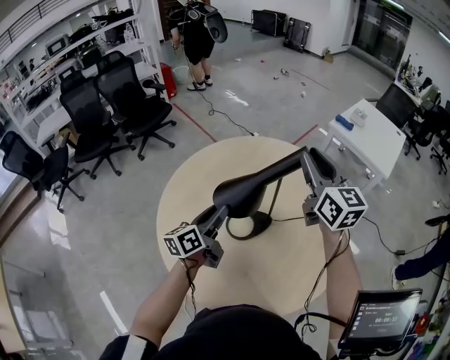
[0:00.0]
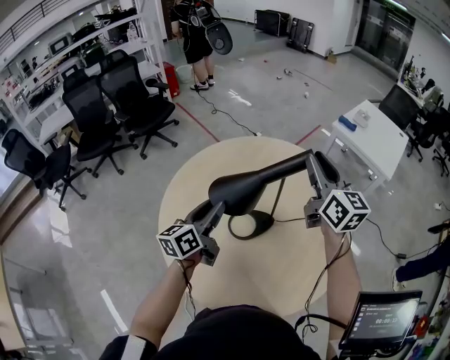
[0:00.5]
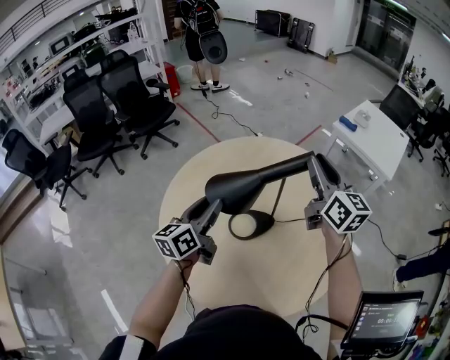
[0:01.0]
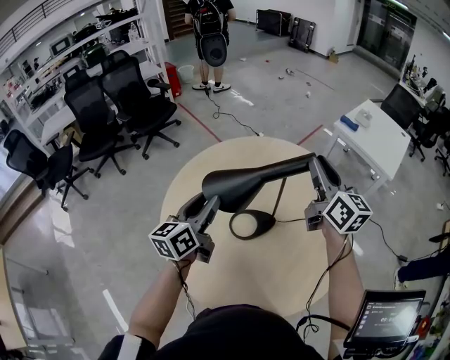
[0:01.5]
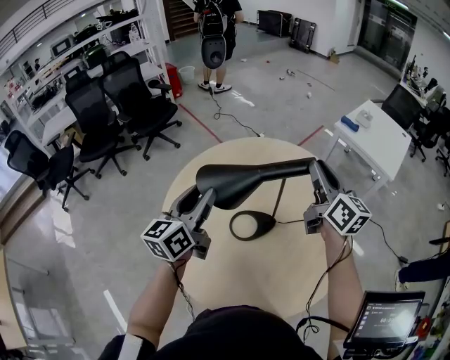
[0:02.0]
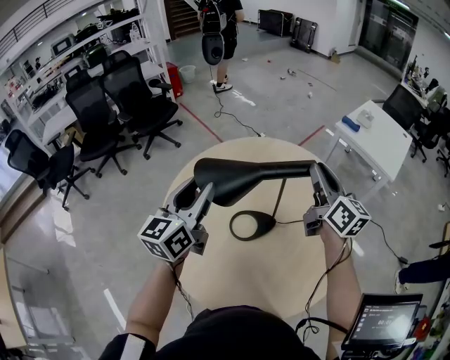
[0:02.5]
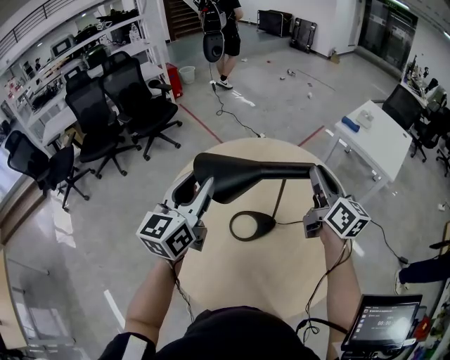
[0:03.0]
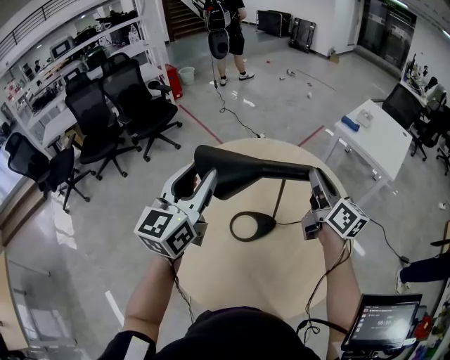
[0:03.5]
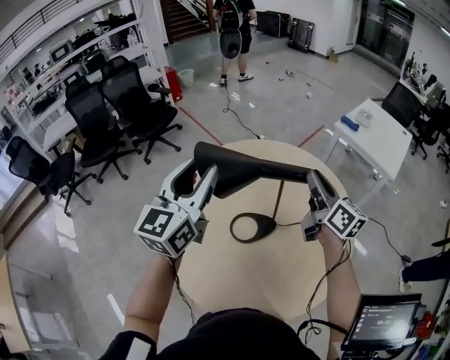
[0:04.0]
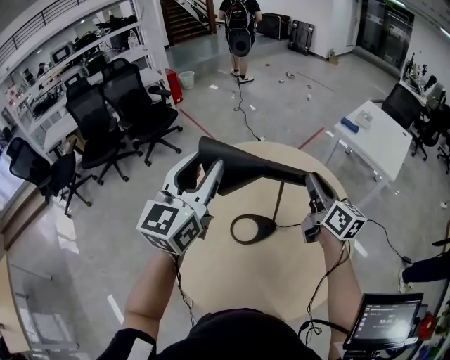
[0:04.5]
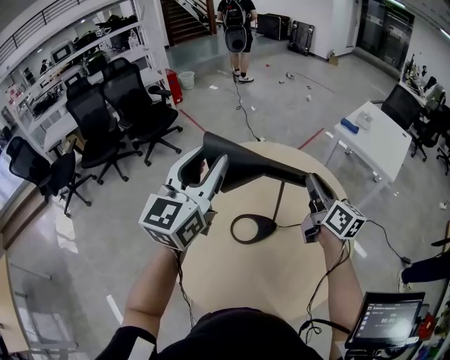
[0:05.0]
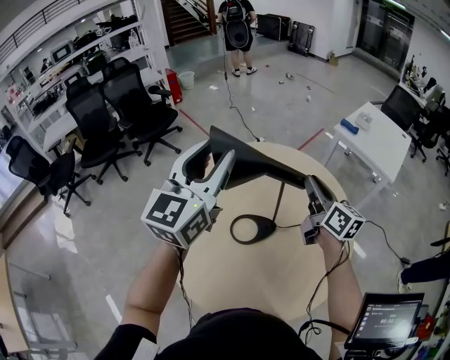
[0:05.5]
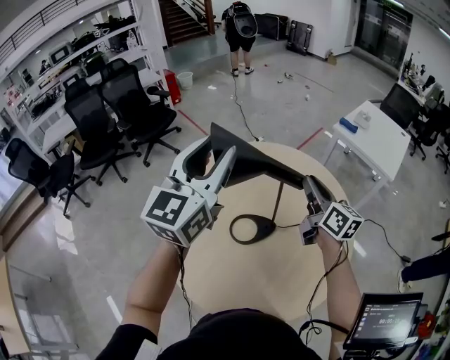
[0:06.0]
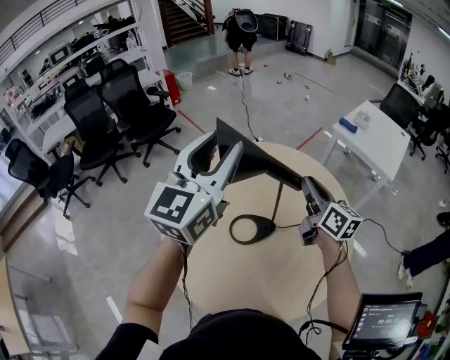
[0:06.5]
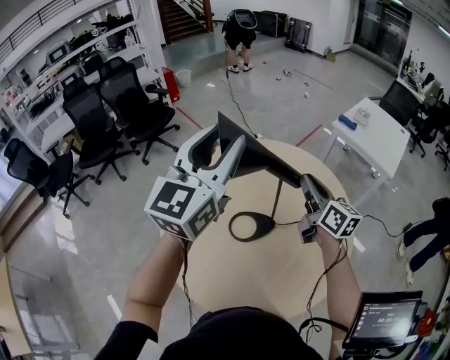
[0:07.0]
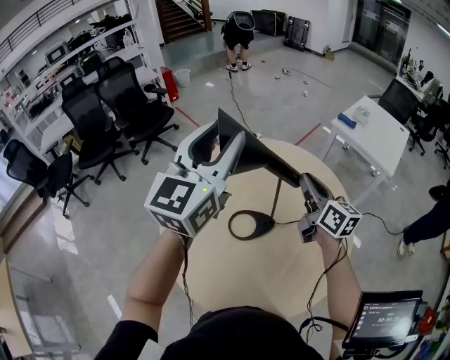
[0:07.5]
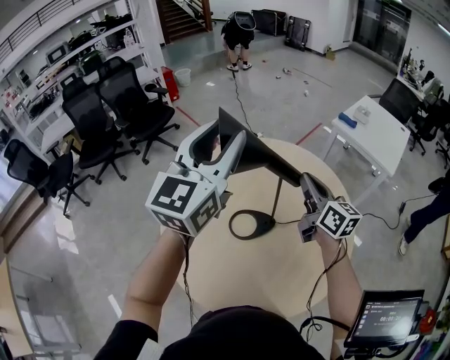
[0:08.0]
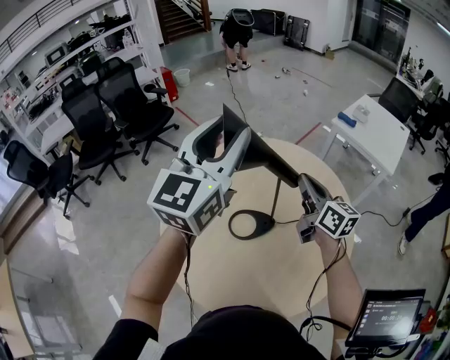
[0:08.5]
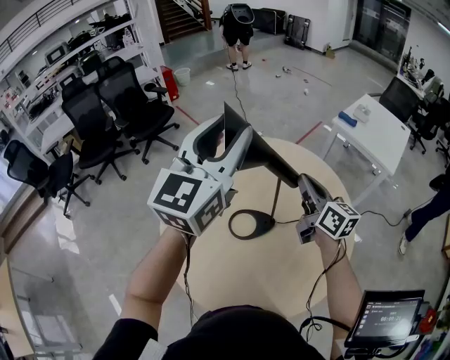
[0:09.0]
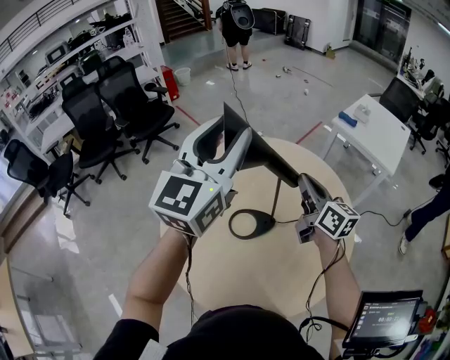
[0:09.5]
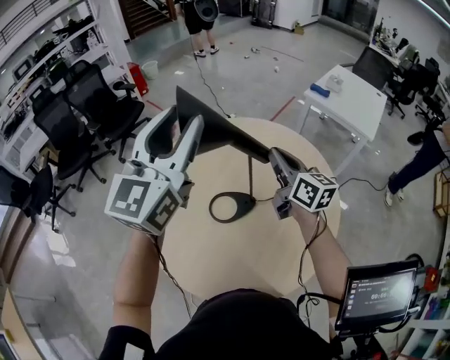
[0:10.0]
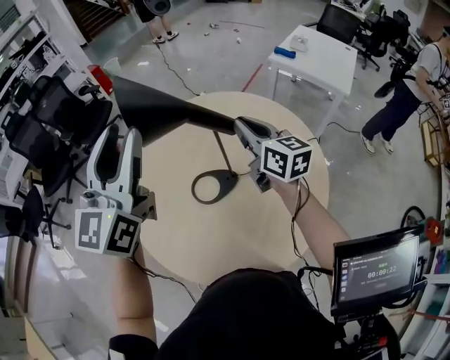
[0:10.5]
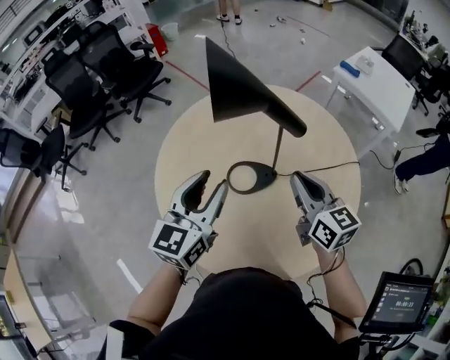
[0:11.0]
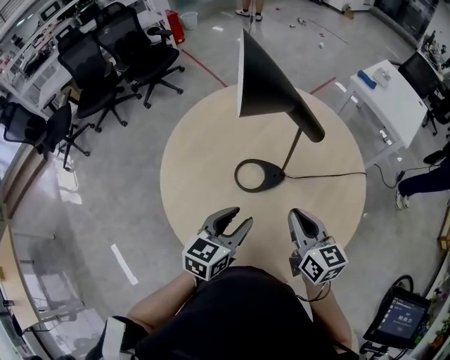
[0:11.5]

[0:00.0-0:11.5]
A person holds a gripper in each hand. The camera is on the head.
0:00.0 to 0:02.0: The left gripper travels upward by some 10 cm, and turns by some 20 degrees.
0:02.0 to 0:04.0: The left gripper travels upward by roughly 10 cm, and swivels roughly 20 degrees.
0:04.0 to 0:06.0: The left gripper is displaced upward by roughly 5 cm.
0:06.0 to 0:09.5: The grippers move only a little.
0:09.5 to 0:11.5: The left gripper is displaced downward and backward by approximately 40 cm, and tips its fingers downward by roughly 40 degrees. The right gripper heads backward and downward, covering roughly 20 cm, and swivels roughly 20 degrees.

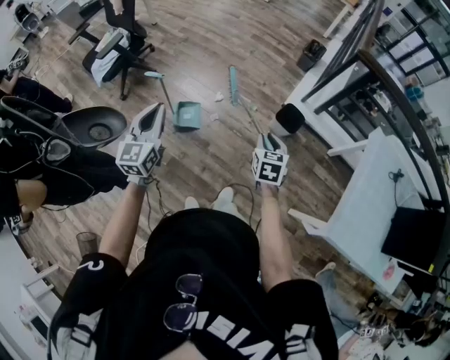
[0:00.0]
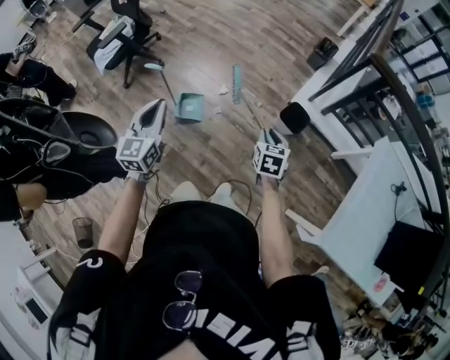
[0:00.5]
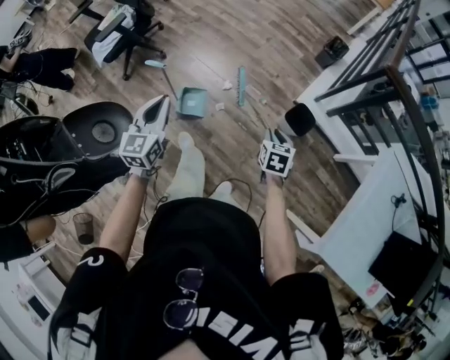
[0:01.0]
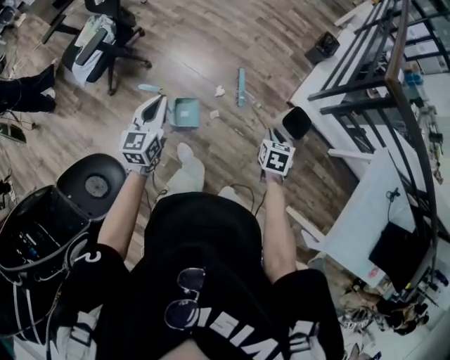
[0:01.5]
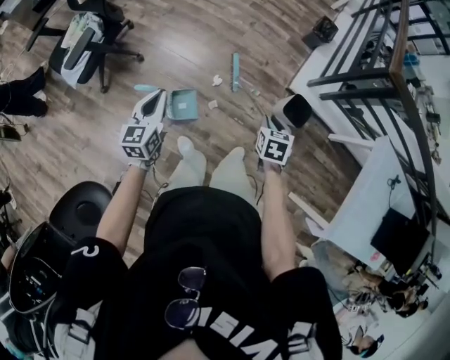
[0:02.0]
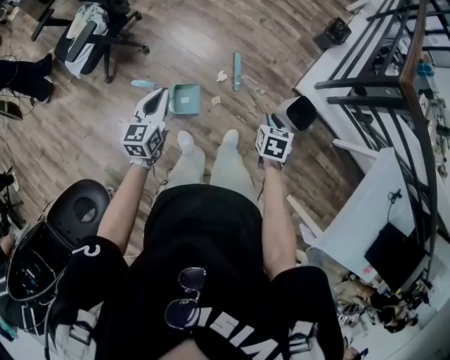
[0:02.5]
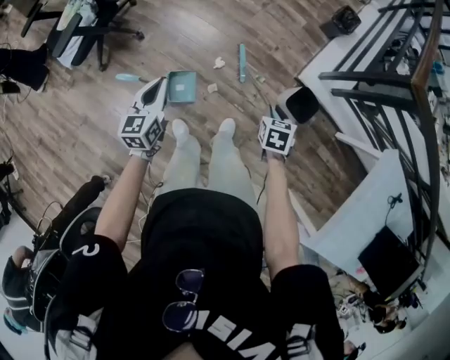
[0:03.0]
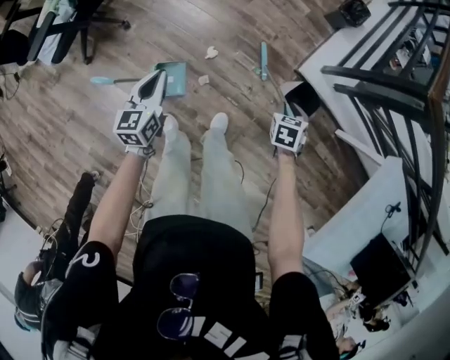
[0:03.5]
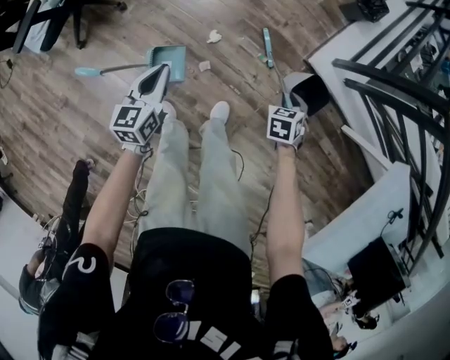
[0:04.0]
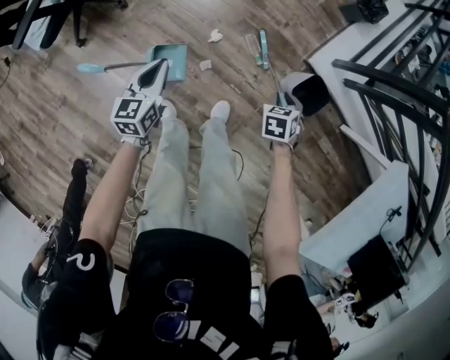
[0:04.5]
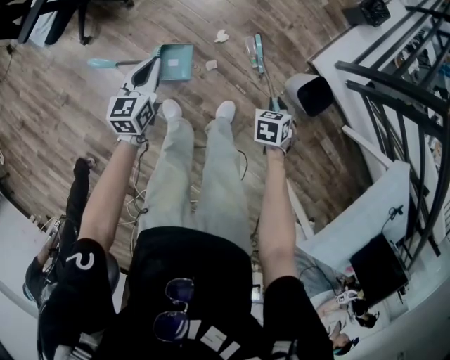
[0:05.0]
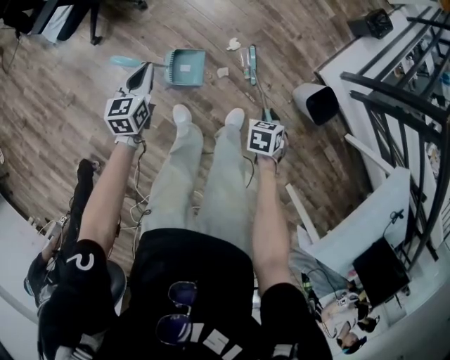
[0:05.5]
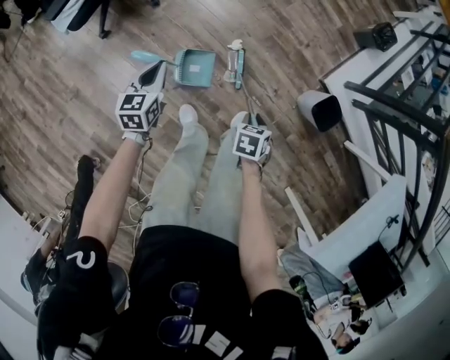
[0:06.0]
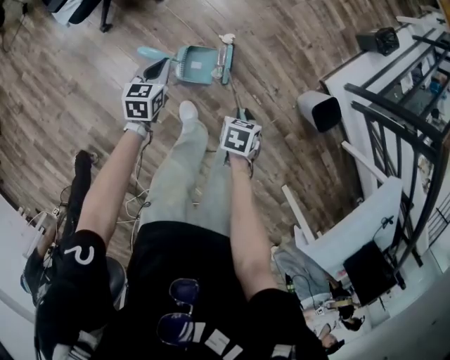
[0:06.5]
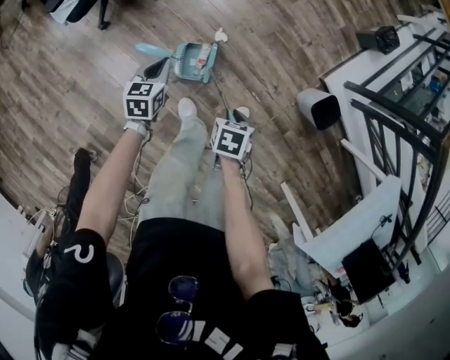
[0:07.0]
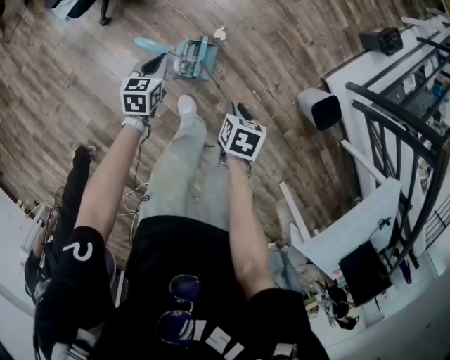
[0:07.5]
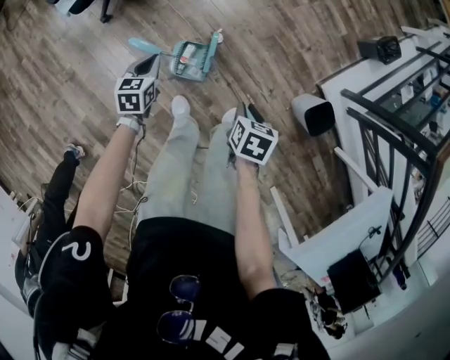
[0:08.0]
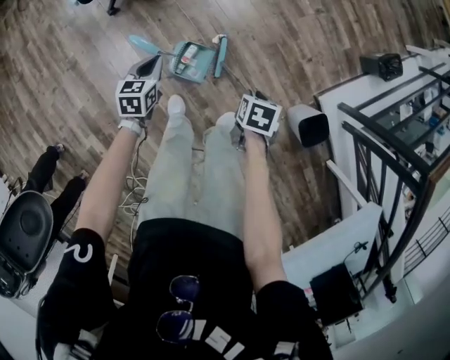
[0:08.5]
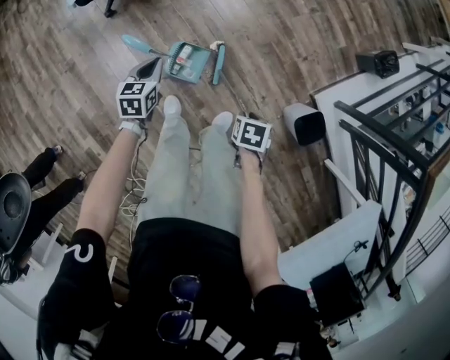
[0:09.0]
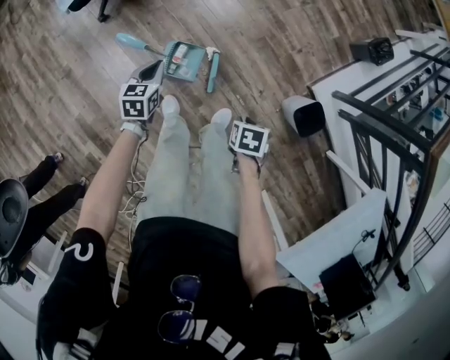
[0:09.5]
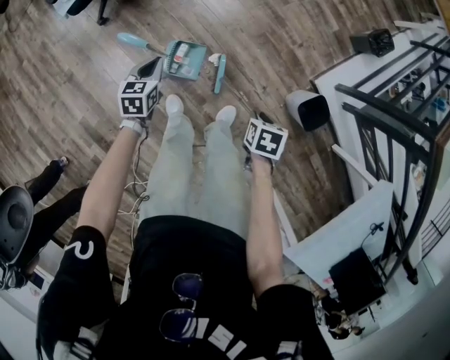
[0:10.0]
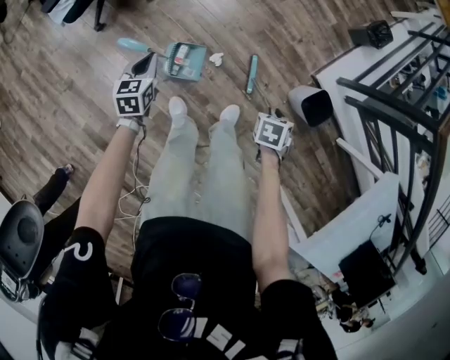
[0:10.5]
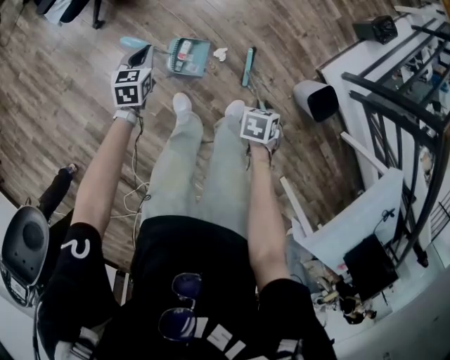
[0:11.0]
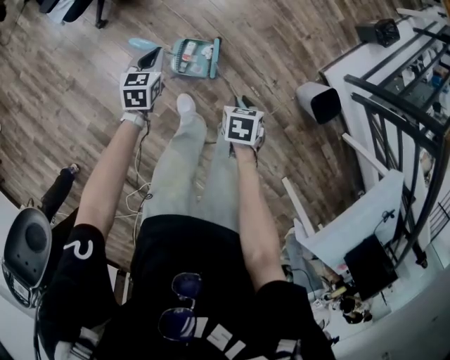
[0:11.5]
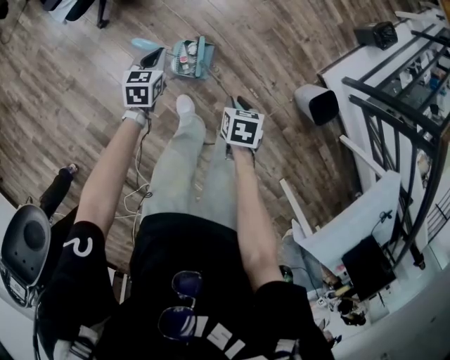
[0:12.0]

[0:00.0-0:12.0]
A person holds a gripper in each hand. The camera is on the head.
0:00.0 to 0:02.0: The left gripper heads forward, to the left and downward, covering about 40 cm. The right gripper moves forward and to the left, approximately 30 cm.
0:02.0 to 0:04.0: The right gripper travels downward, forward and to the right by about 35 cm, and changes its angle by about 20 degrees. Meanwhile the left gripper travels downward, to the right and forward by some 30 cm.
0:04.0 to 0:06.0: The left gripper travels to the left by some 20 cm. The right gripper shifts about 30 cm to the left and backward.
0:06.0 to 0:08.0: The right gripper travels upward by about 5 cm. Meanwhile the left gripper travels downward by roughly 5 cm.
0:08.0 to 0:10.0: The left gripper changes place by roughly 10 cm. Meanwhile the right gripper changes place by approximately 10 cm.
0:10.0 to 0:12.0: The left gripper shifts by about 10 cm. Meanwhile the right gripper moves some 15 cm.

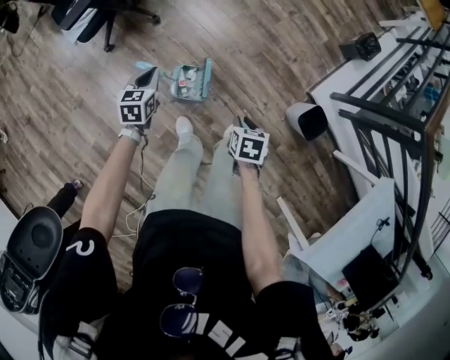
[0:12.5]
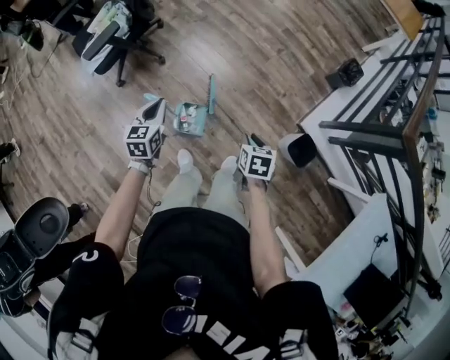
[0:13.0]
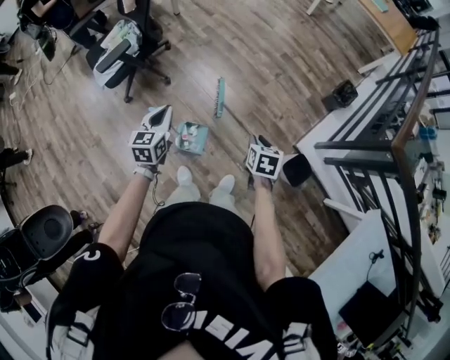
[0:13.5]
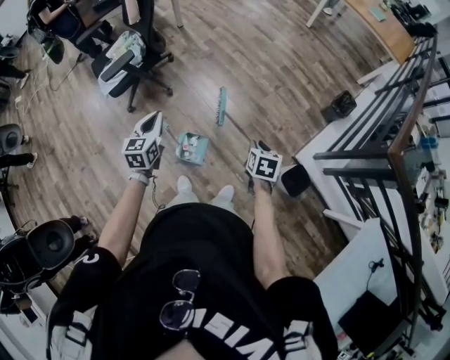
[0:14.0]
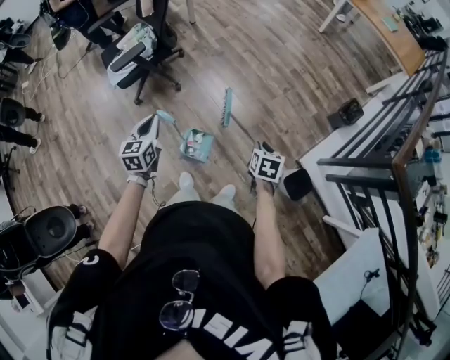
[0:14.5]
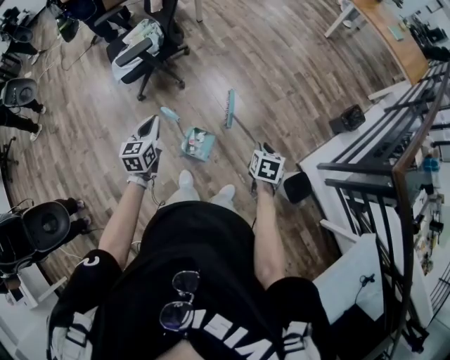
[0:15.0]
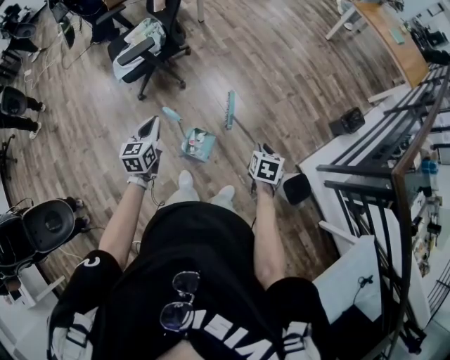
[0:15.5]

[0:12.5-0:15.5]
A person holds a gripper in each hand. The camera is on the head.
0:12.5 to 0:14.0: The right gripper heads upward, to the right and forward, covering approximately 20 cm; the left gripper travels upward by roughly 25 cm, and changes its angle by about 20 degrees.
0:14.0 to 0:15.5: The left gripper moves to the left, roughly 5 cm.
